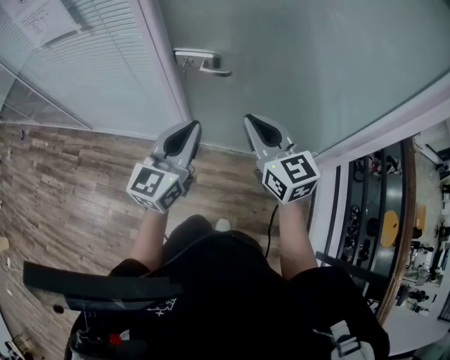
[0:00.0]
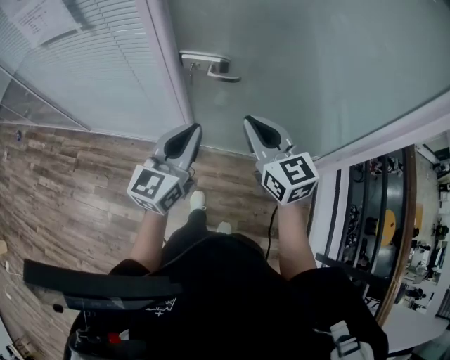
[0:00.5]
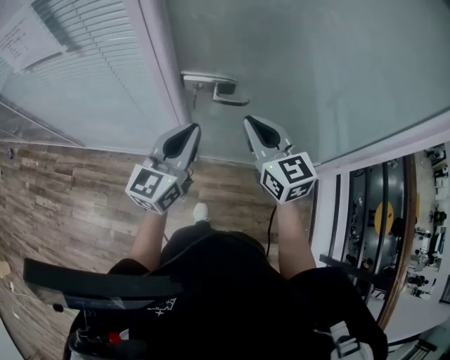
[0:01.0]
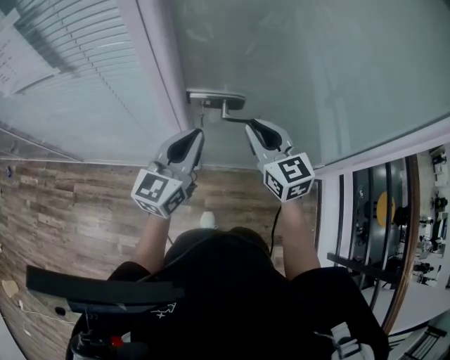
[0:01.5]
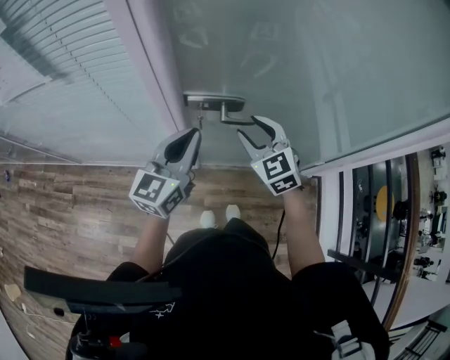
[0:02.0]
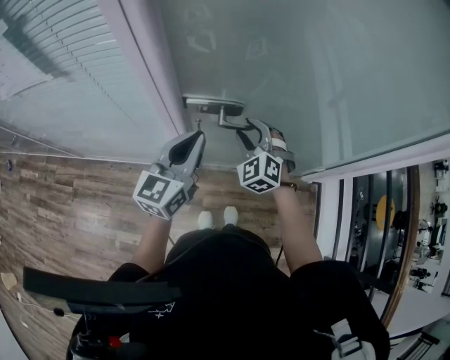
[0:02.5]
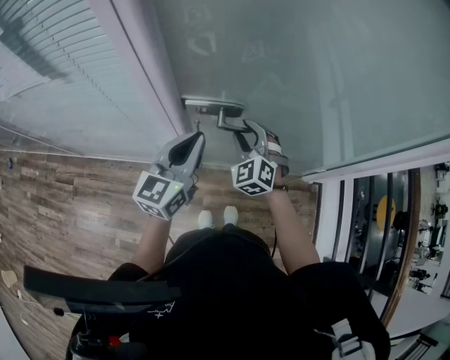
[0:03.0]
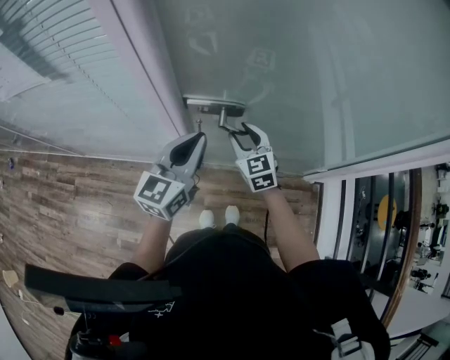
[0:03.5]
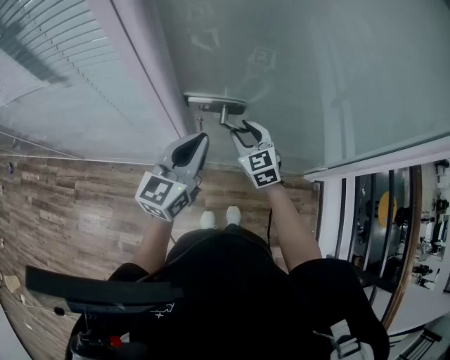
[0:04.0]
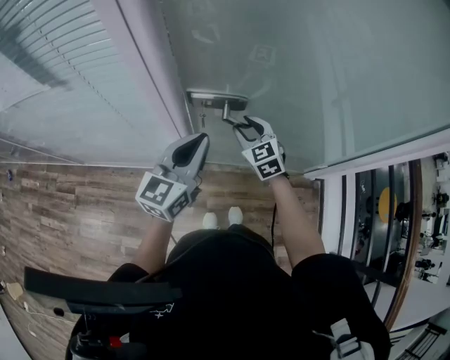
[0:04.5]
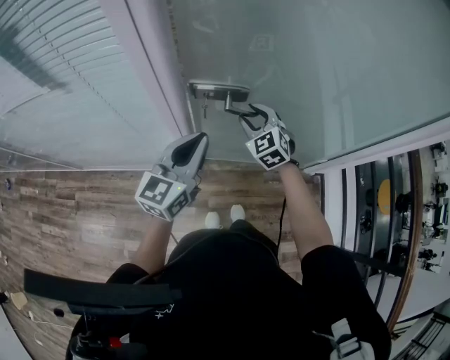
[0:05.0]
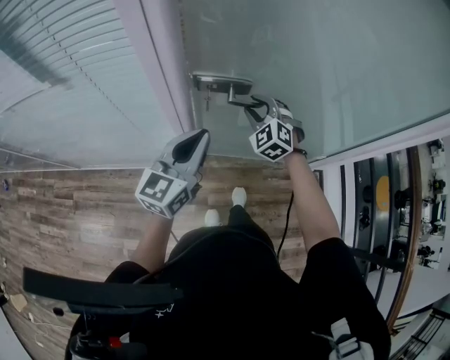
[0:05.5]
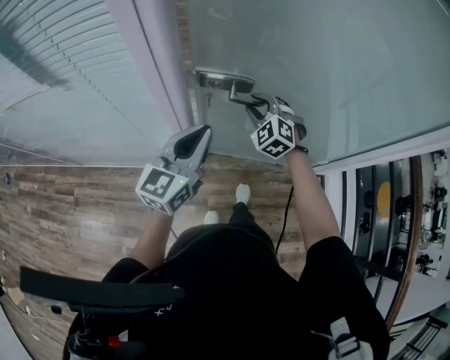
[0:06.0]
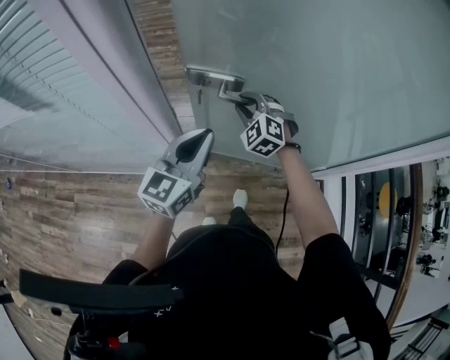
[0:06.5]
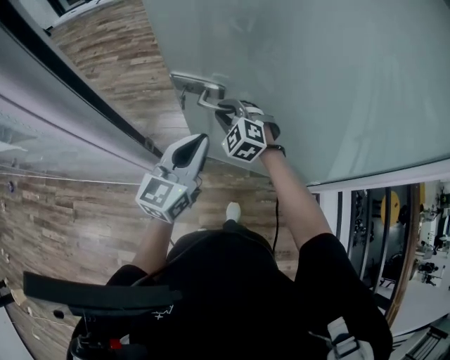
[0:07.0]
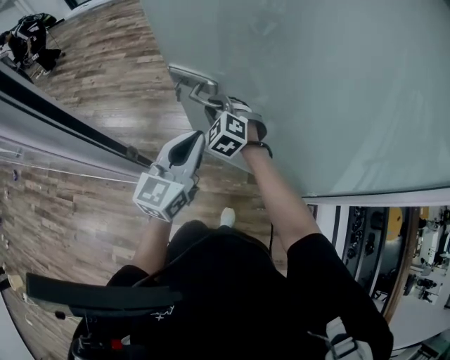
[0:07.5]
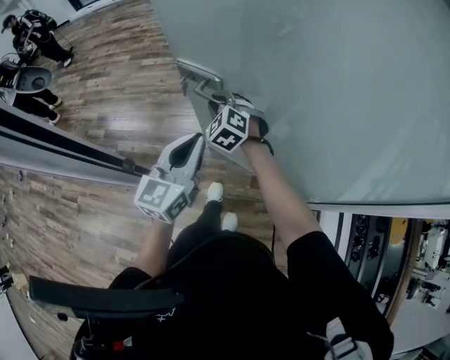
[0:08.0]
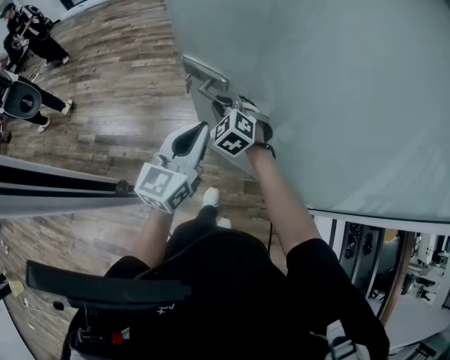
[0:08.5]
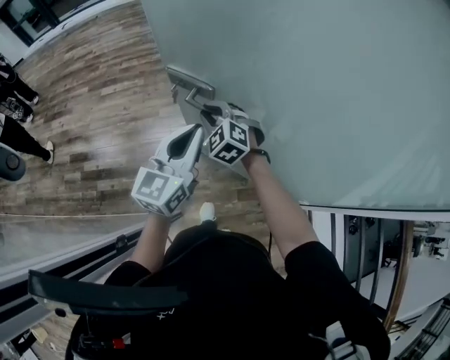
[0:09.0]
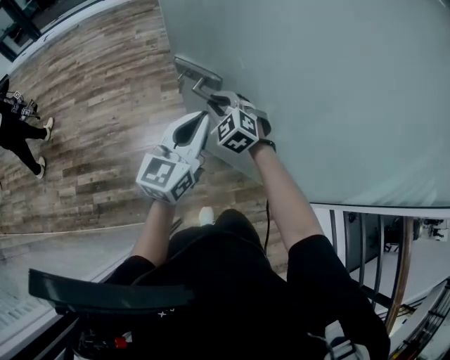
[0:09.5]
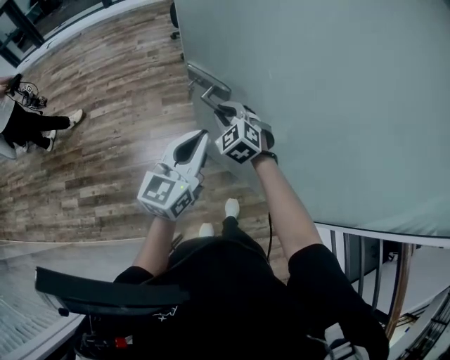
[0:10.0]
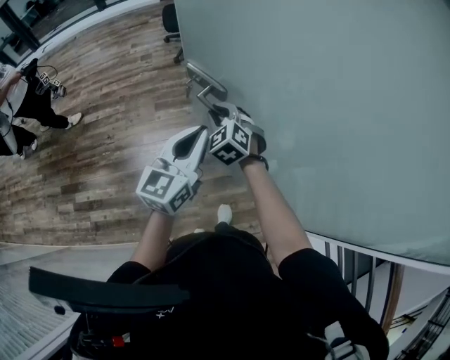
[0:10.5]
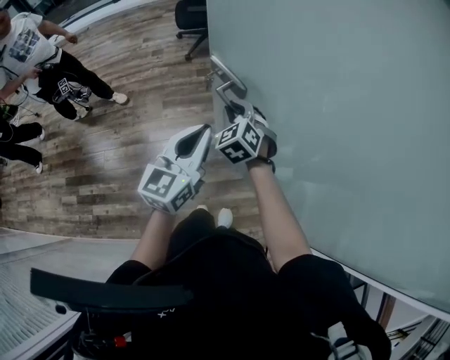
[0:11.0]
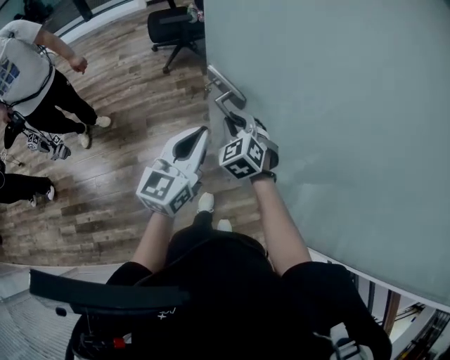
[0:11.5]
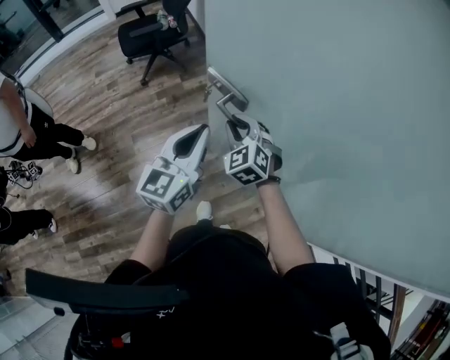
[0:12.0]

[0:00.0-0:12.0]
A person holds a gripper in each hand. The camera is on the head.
0:00.0 to 0:02.0: The right gripper travels forward and downward by about 20 cm, swivels approximately 30 degrees, and opens up. The left gripper moves forward and to the left, roughly 20 cm.
0:02.0 to 0:04.0: The right gripper moves downward, about 10 cm.
0:04.0 to 0:06.0: The right gripper heads forward, covering about 5 cm, and swivels some 40 degrees.
0:06.0 to 0:08.0: The left gripper goes roughly 15 cm forward and to the right; the right gripper travels forward by roughly 15 cm.
0:08.0 to 0:10.0: The left gripper shifts some 20 cm forward; the right gripper goes about 20 cm forward and to the right.
0:10.0 to 0:12.0: Both grippers move forward and to the right, some 25 cm. The right gripper rotates about 20 degrees.

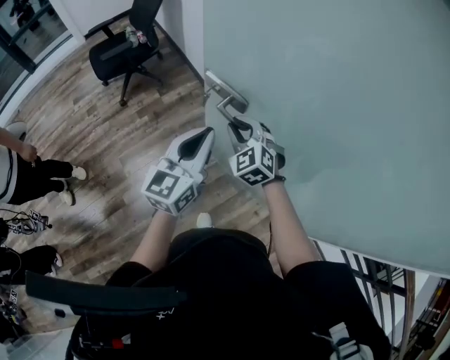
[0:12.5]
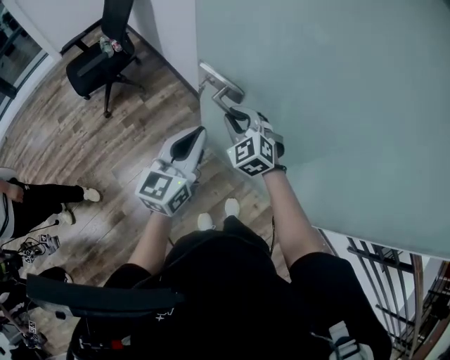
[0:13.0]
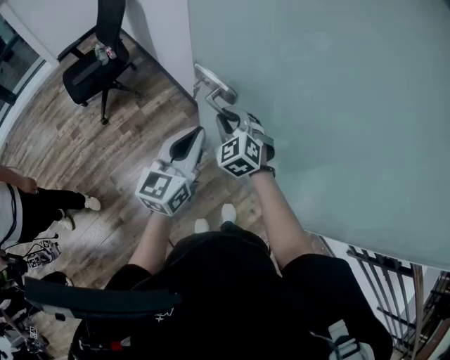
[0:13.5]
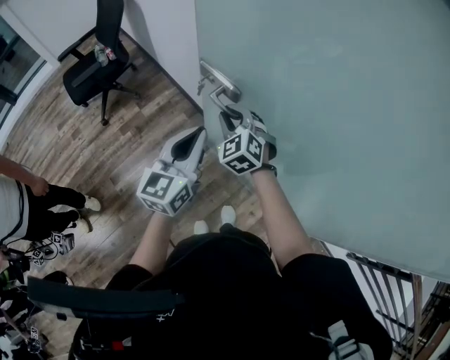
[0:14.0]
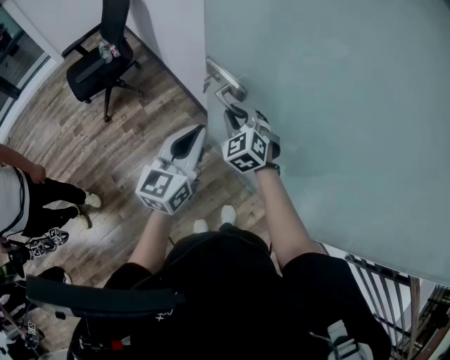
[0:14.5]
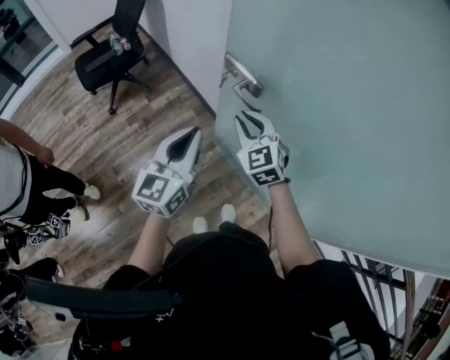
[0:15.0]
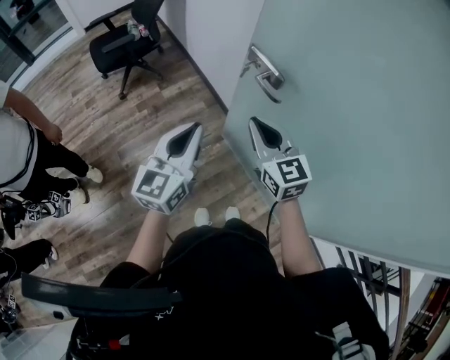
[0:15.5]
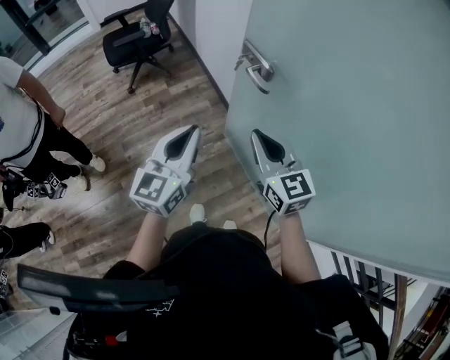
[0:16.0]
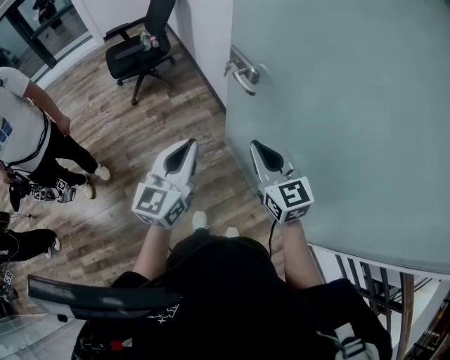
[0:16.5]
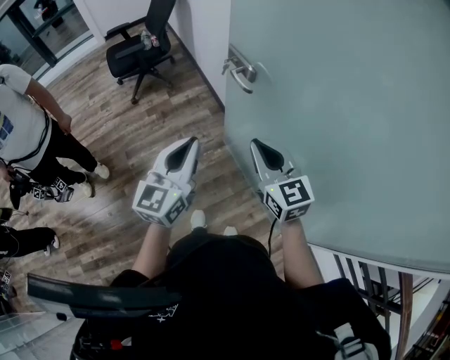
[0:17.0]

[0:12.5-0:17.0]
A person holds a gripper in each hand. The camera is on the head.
0:12.5 to 0:14.5: The left gripper is displaced forward by approximately 10 cm, while the right gripper moves forward and to the right, some 10 cm.
0:14.5 to 0:17.0: The right gripper travels backward and upward by some 25 cm, and swivels about 40 degrees. Meanwhile the left gripper is displaced backward by roughly 15 cm.

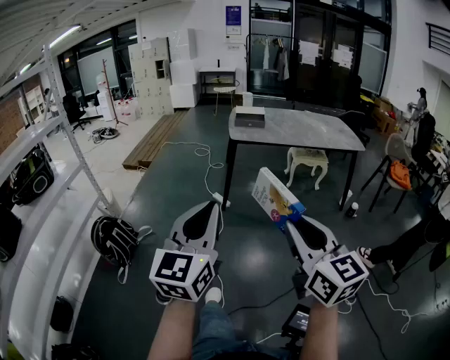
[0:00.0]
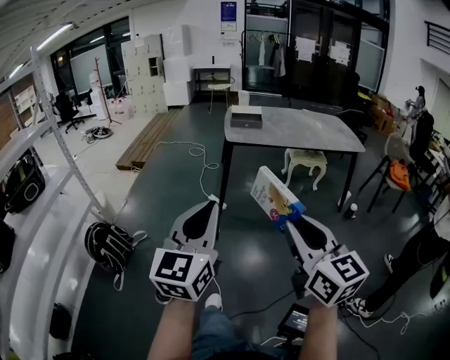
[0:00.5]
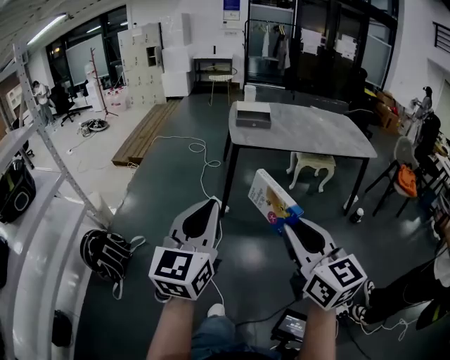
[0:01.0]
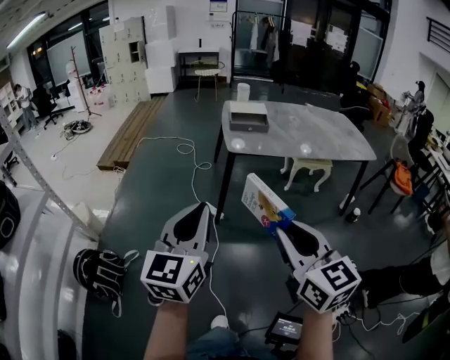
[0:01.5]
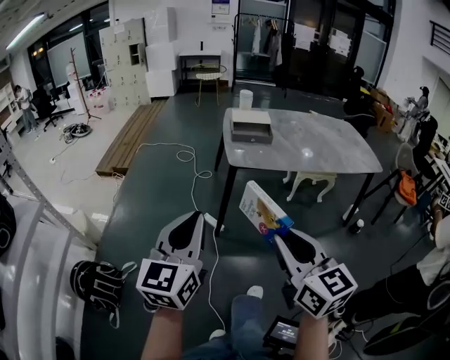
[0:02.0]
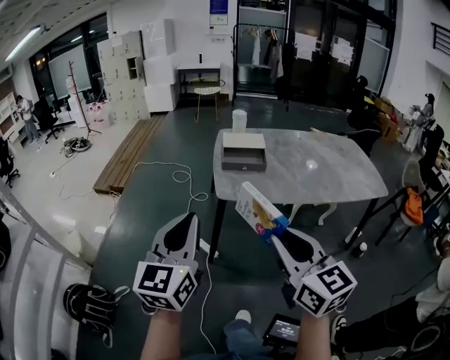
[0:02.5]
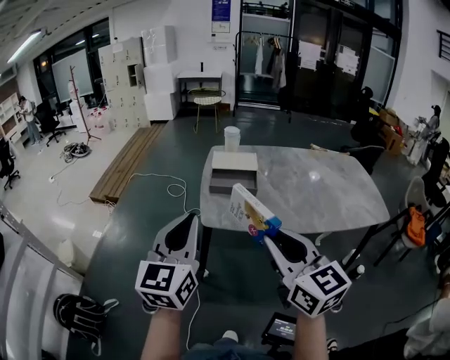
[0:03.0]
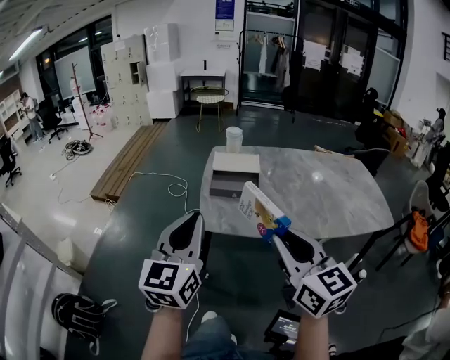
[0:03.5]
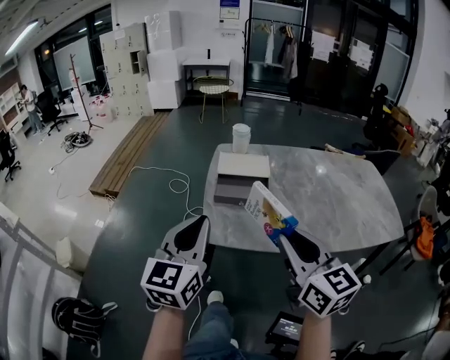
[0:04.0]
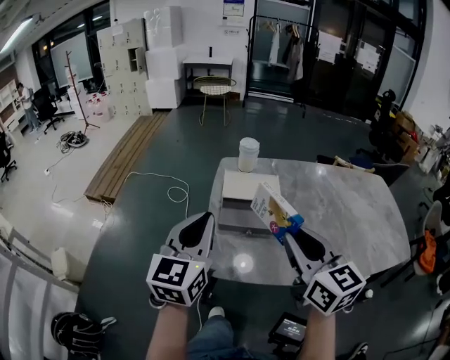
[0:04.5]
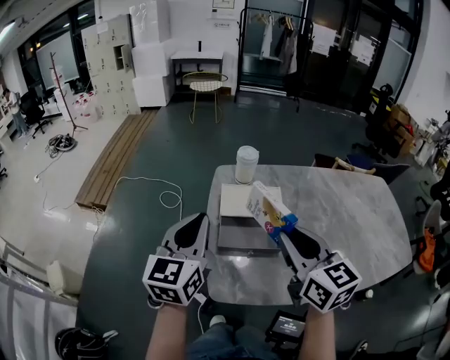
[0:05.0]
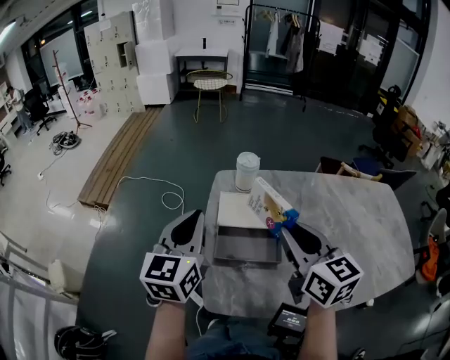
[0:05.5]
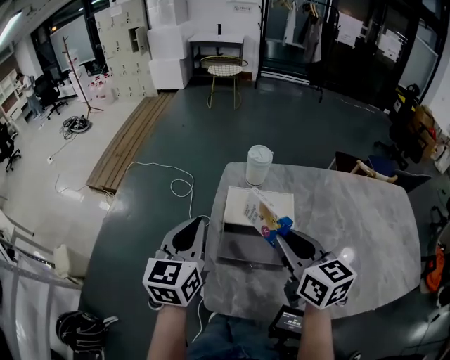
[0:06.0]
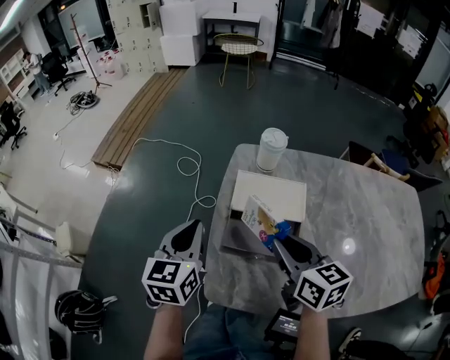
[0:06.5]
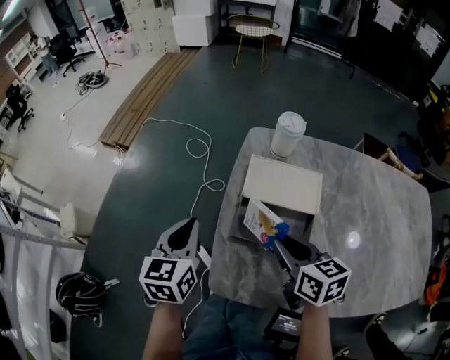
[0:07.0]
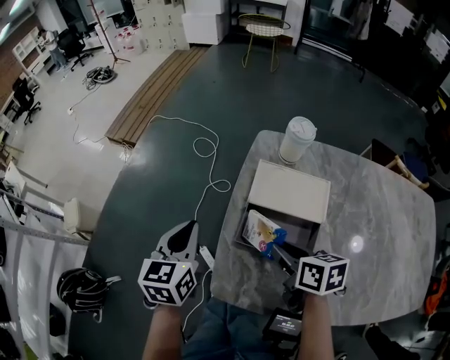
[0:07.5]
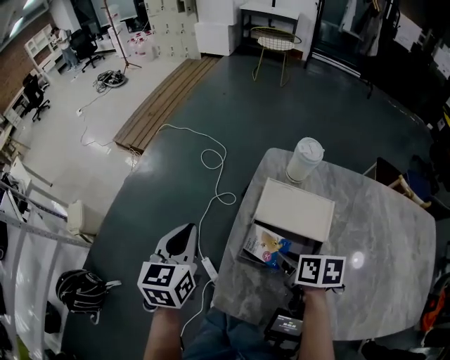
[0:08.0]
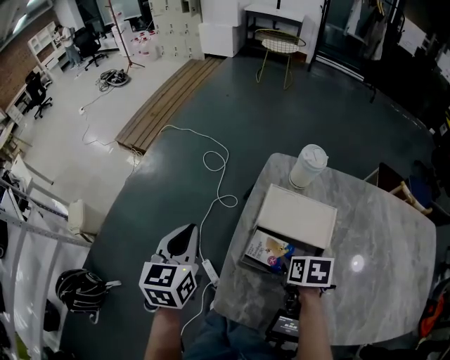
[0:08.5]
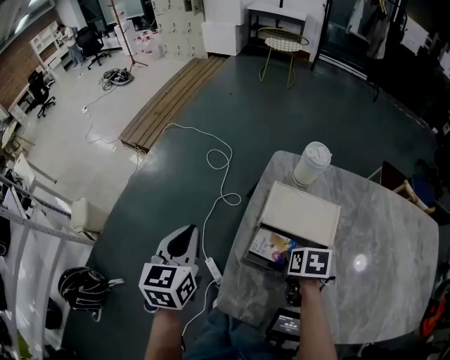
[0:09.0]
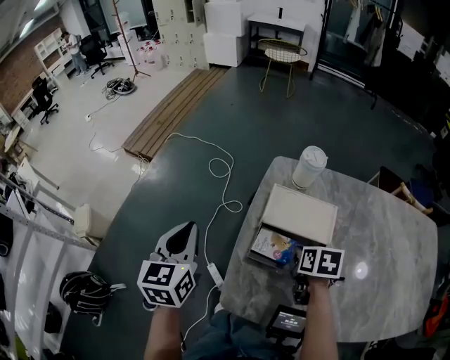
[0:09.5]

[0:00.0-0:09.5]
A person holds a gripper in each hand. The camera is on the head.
0:00.0 to 0:02.0: Both grippers move forward, about 35 cm.
0:02.0 to 0:04.0: The two grippers go some 40 cm forward and to the right.
0:04.0 to 0:05.5: The two grippers go approximately 25 cm forward.
0:05.5 to 0:07.5: The right gripper shifts approximately 20 cm downward, and turns by roughly 50 degrees. The left gripper heads downward and to the left, covering about 15 cm, and changes its angle by some 30 degrees.
0:07.5 to 0:09.5: The left gripper heads upward, covering roughly 5 cm. Meanwhile the right gripper goes roughly 5 cm to the right, and turns by approximately 20 degrees.

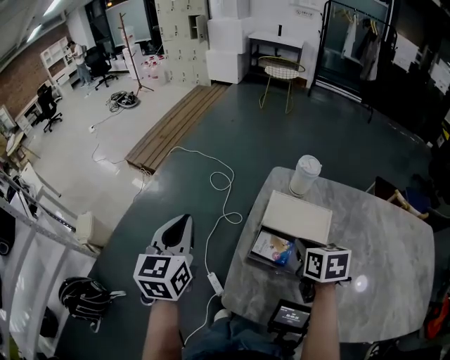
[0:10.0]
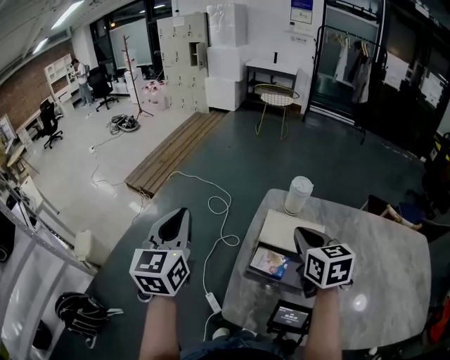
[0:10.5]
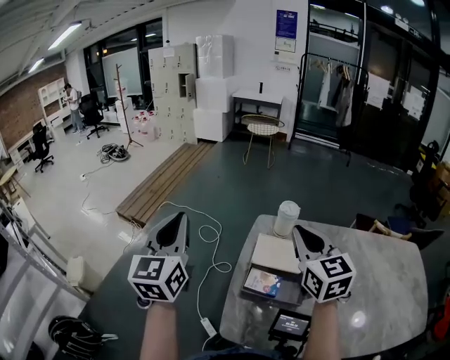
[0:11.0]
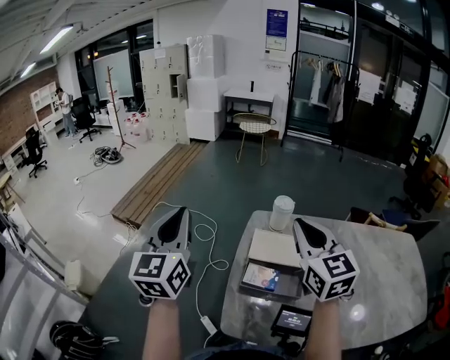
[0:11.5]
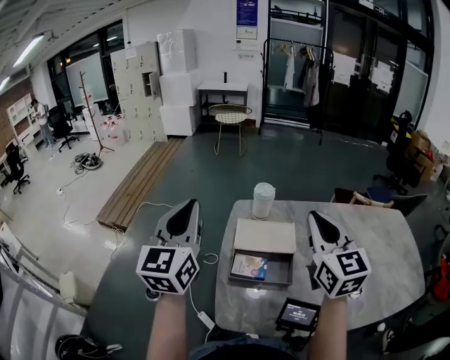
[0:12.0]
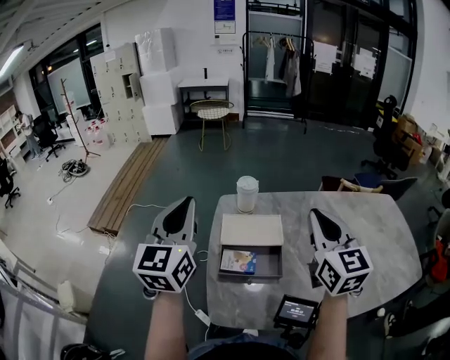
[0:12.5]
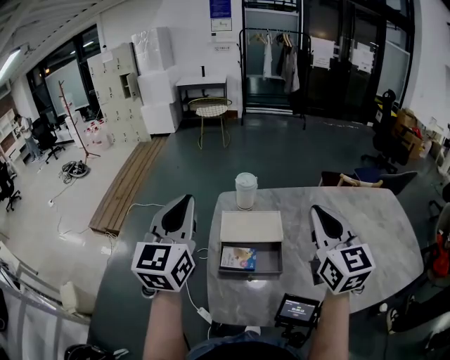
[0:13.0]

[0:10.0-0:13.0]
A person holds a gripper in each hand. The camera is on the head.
0:10.0 to 0:11.5: The left gripper goes about 15 cm upward, and rotates roughly 20 degrees, while the right gripper heads upward, covering approximately 25 cm, and tilts its fingers some 40 degrees upward.
0:11.5 to 0:13.0: Both grippers travel together to the right, about 15 cm.
